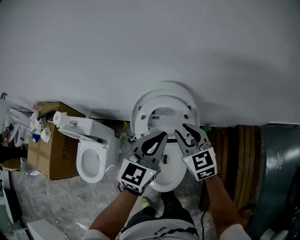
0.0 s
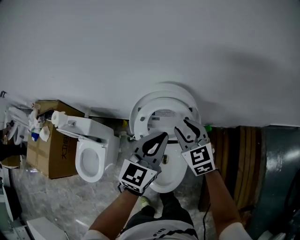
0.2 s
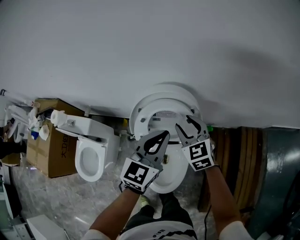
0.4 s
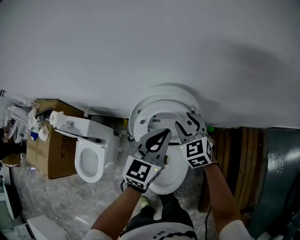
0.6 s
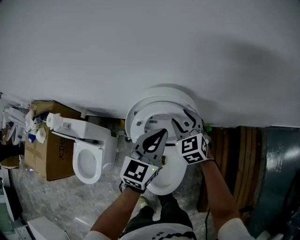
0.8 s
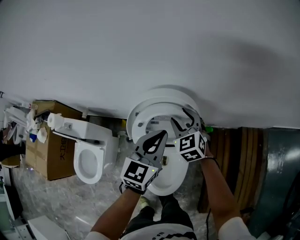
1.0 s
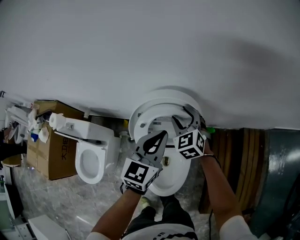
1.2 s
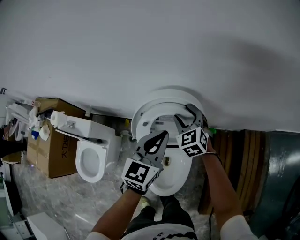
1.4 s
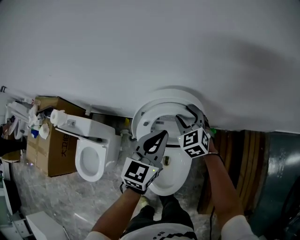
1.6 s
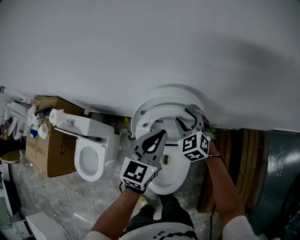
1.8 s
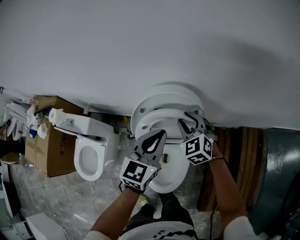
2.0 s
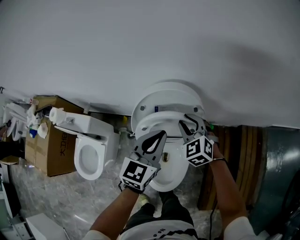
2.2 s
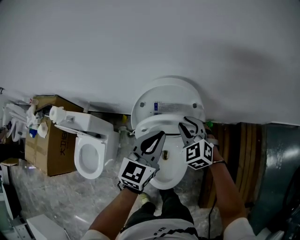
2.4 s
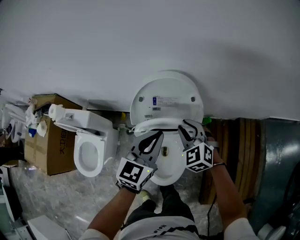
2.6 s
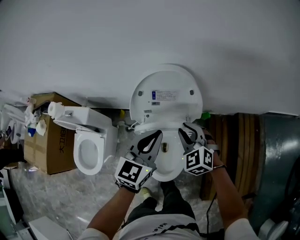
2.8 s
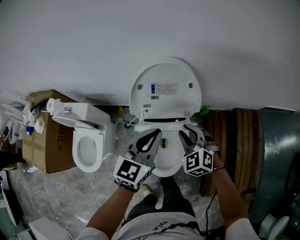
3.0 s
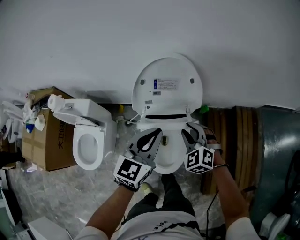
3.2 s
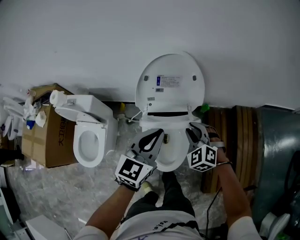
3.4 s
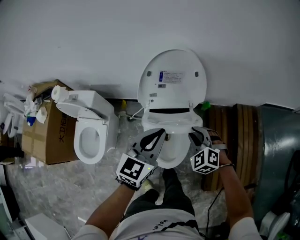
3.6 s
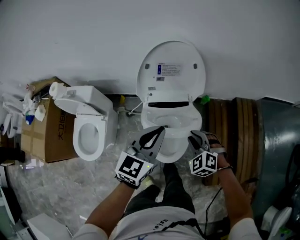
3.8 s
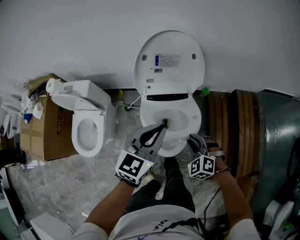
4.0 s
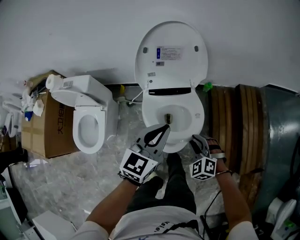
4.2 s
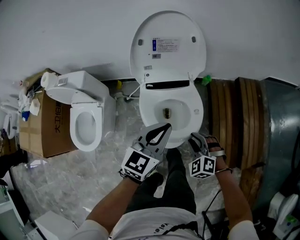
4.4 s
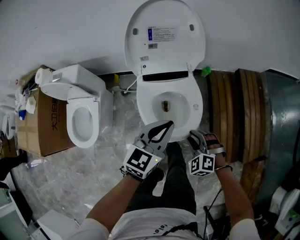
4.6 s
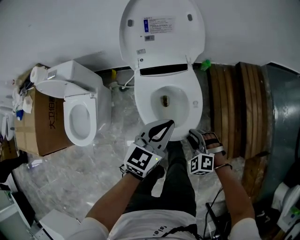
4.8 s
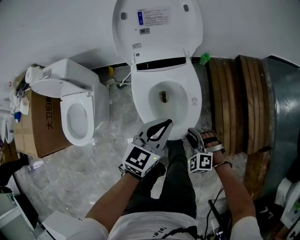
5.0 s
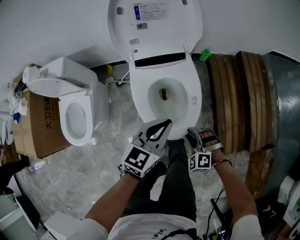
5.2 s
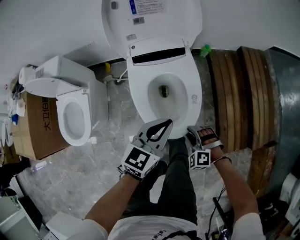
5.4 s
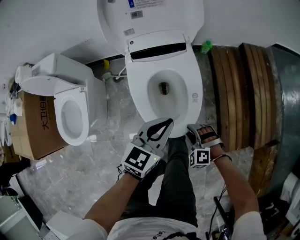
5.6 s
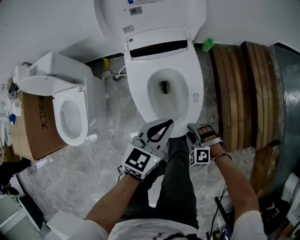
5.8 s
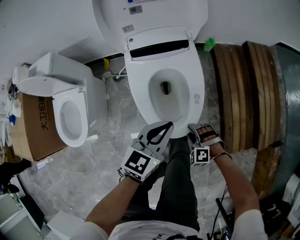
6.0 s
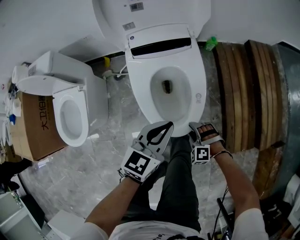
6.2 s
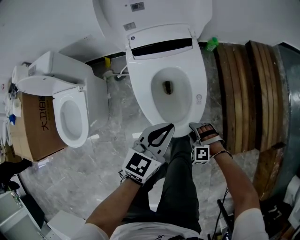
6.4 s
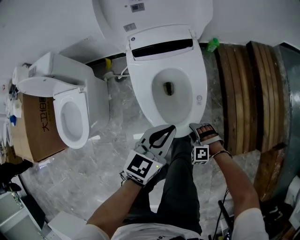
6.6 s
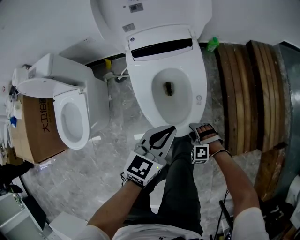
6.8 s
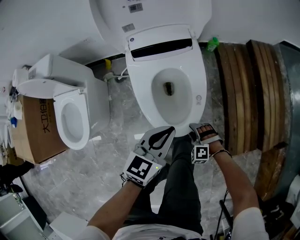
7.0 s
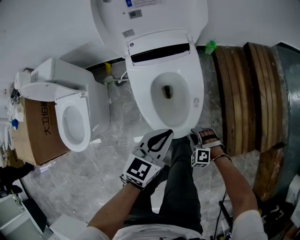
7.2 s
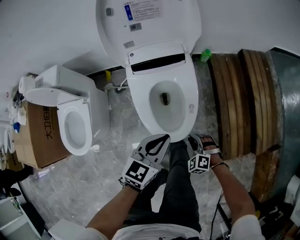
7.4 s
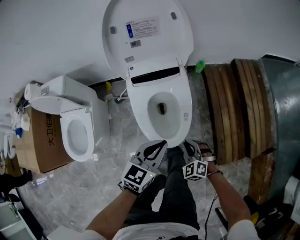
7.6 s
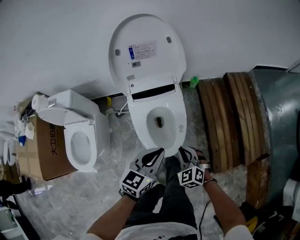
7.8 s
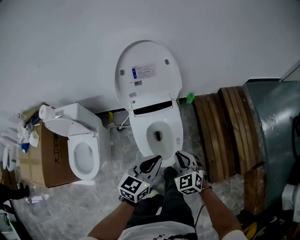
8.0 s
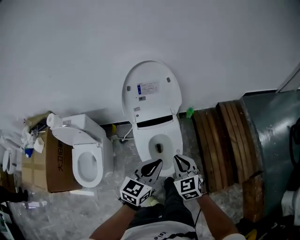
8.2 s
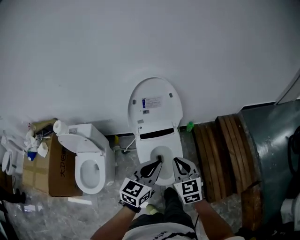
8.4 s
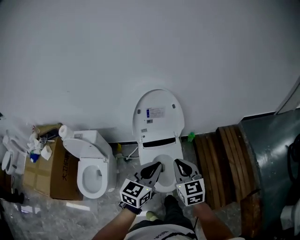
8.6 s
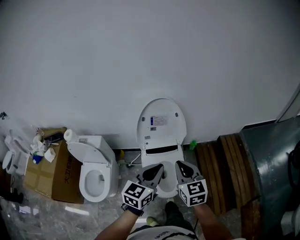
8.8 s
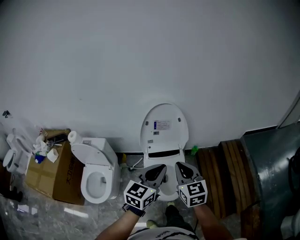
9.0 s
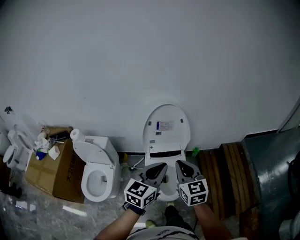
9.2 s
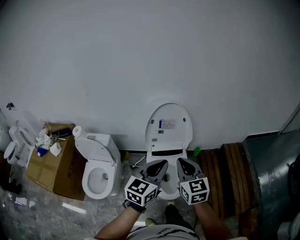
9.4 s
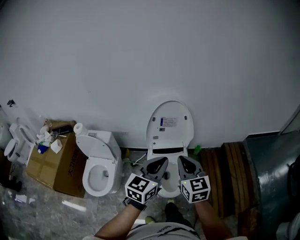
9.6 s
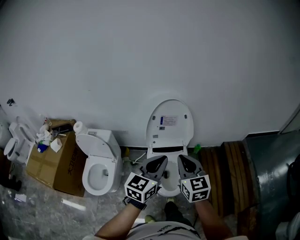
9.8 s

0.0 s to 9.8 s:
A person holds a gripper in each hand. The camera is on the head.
0.0 to 1.4 s: The right gripper goes approximately 20 cm forward and downward, and opens, while the left gripper goes approximately 10 cm forward and downward.
1.4 to 2.8 s: The right gripper travels backward by about 20 cm, and closes; the left gripper shifts approximately 10 cm backward.
2.8 to 4.2 s: The left gripper goes approximately 15 cm backward; the right gripper heads backward and downward, covering some 30 cm.
4.2 to 5.6 s: The right gripper travels downward and backward by some 30 cm. Meanwhile the left gripper heads downward, covering some 20 cm.
5.6 to 7.0 s: The right gripper moves downward, about 10 cm. Meanwhile the left gripper heads downward, covering roughly 5 cm.
7.0 to 8.4 s: The left gripper goes about 35 cm upward; the right gripper is displaced upward by roughly 60 cm, rotates around the line of its fingers by roughly 60 degrees, clockwise from behind, and closes.
8.4 to 9.8 s: The right gripper shifts approximately 15 cm upward. Meanwhile the left gripper heads upward and to the left, covering about 15 cm.

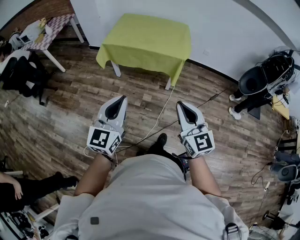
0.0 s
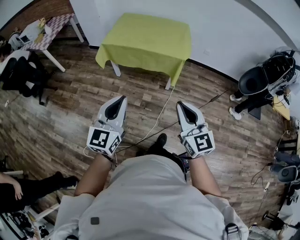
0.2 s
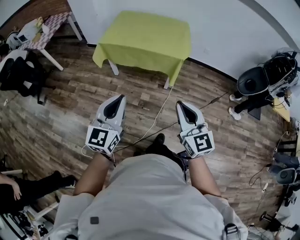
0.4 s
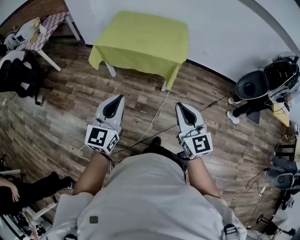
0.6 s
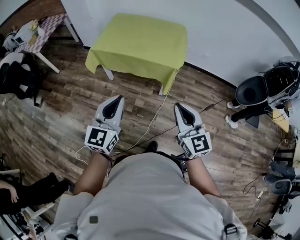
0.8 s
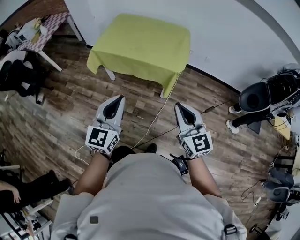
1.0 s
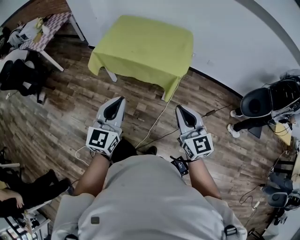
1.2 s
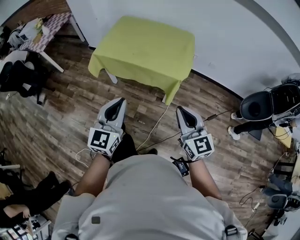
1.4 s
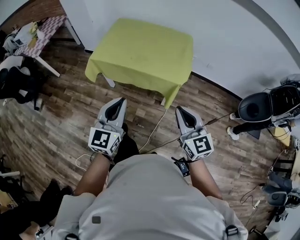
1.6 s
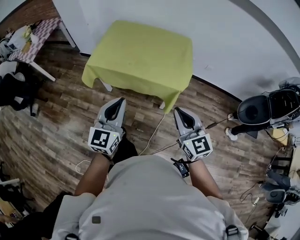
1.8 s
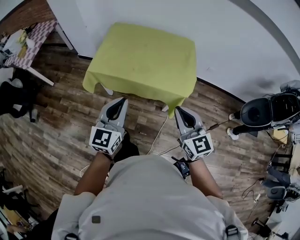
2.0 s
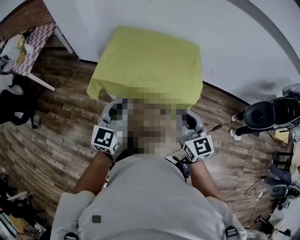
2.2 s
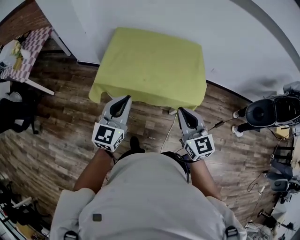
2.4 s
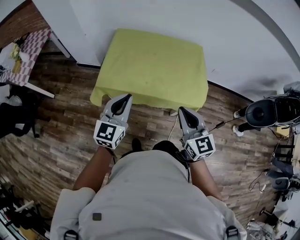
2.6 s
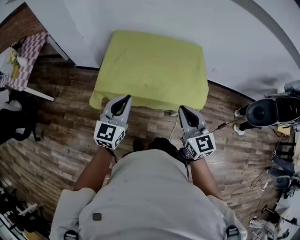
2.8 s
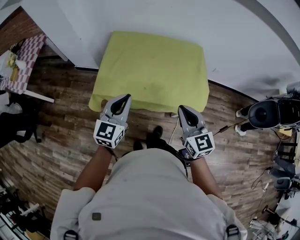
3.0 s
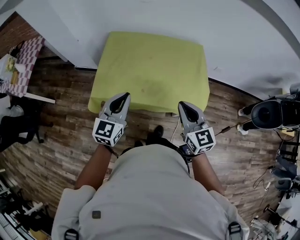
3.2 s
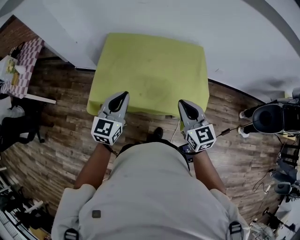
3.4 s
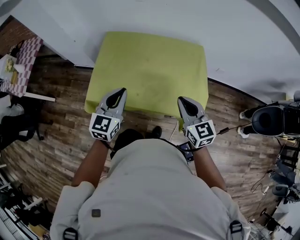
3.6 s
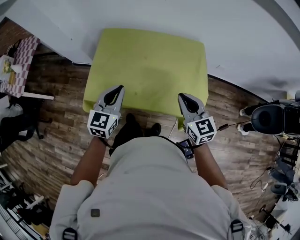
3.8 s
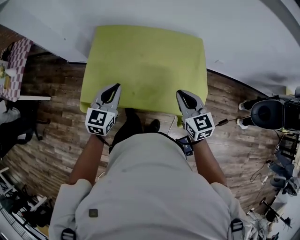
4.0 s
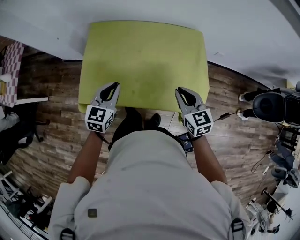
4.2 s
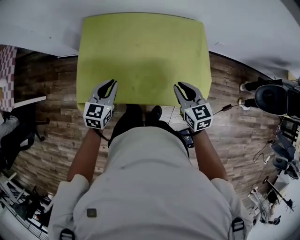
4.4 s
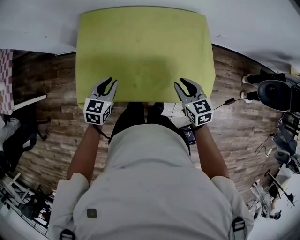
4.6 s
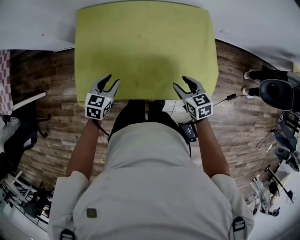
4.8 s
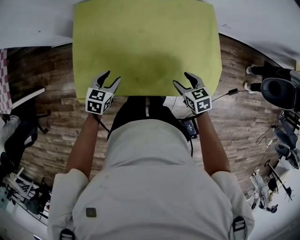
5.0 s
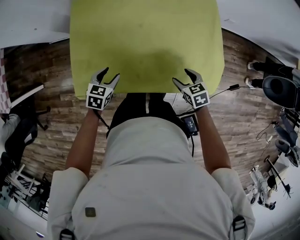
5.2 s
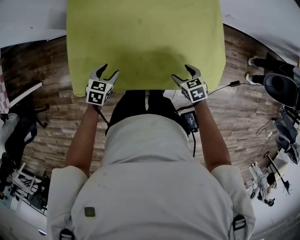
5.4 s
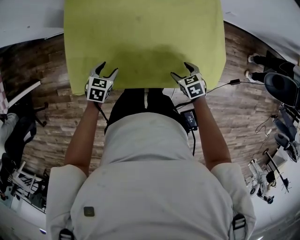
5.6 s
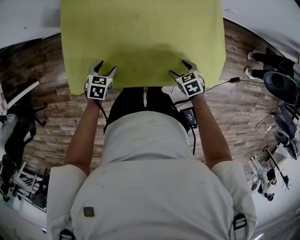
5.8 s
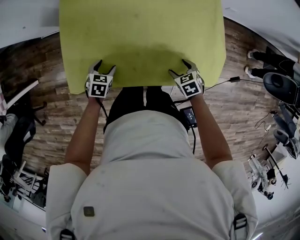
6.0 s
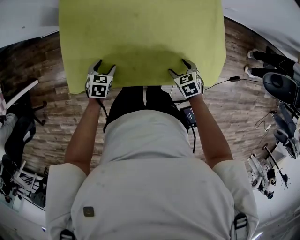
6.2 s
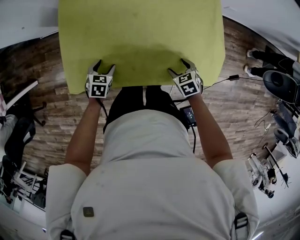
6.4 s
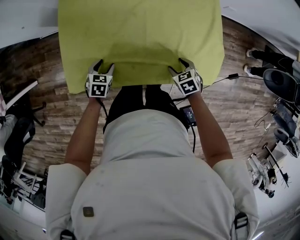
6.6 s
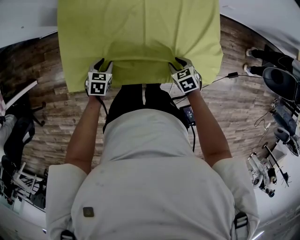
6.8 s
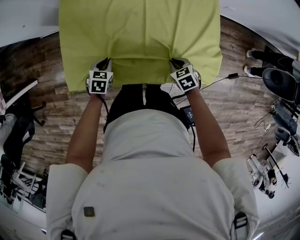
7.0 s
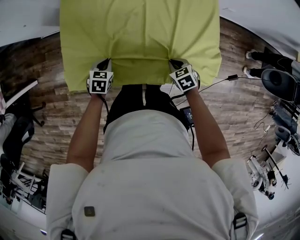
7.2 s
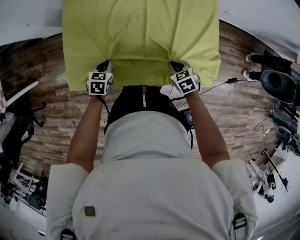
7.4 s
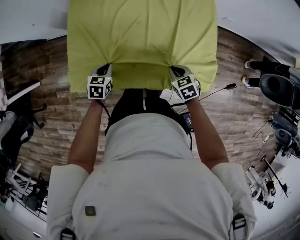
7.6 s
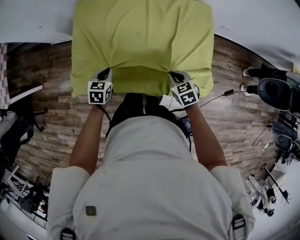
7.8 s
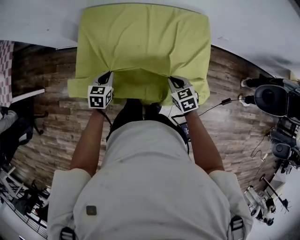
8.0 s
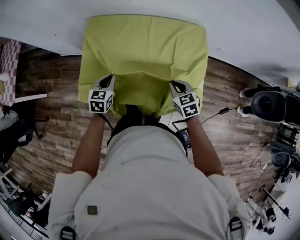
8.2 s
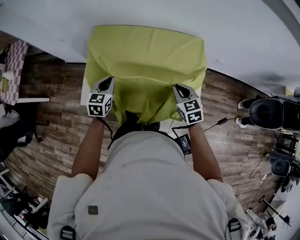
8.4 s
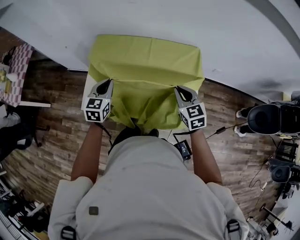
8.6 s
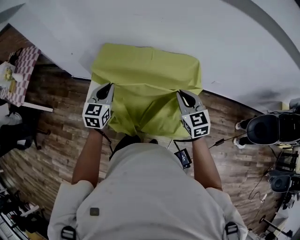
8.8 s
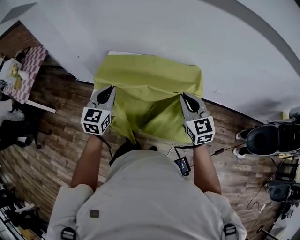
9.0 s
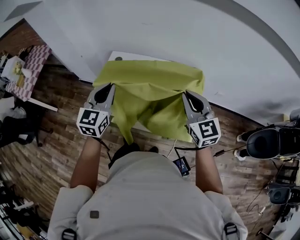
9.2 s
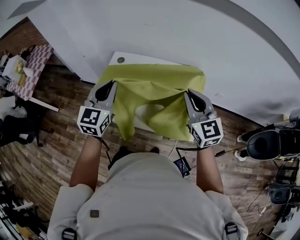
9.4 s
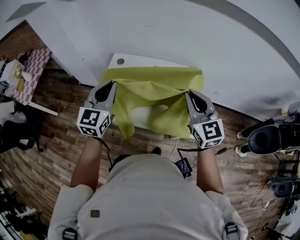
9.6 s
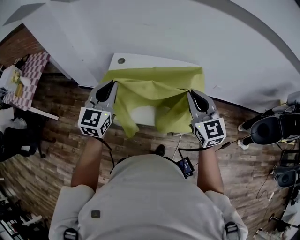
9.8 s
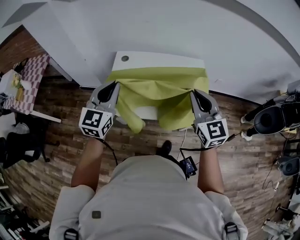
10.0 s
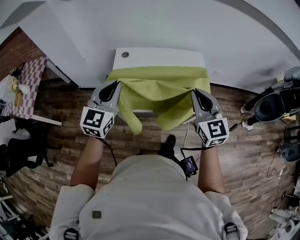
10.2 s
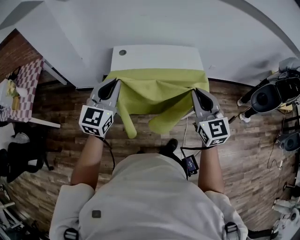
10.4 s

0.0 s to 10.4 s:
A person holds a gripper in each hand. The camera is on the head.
0.0 to 1.4 s: Both grippers move forward and to the right, about 25 cm.
1.4 to 3.0 s: Both grippers move forward and to the left, some 40 cm.
3.0 to 4.4 s: Both grippers travel together forward and downward, roughly 25 cm. The left gripper swivels about 20 degrees, while the right gripper rotates approximately 20 degrees.
4.4 to 6.0 s: The two grippers go roughly 25 cm downward. The left gripper tips its fingers downward by roughly 30 degrees, and opens, while the right gripper points its fingers roughly 40 degrees further downward, and opens up.
6.0 to 7.4 s: The right gripper closes, while the left gripper closes up.
7.4 to 9.0 s: The two grippers go about 40 cm upward. The left gripper tilts its fingers approximately 40 degrees upward. The right gripper tips its fingers upward by roughly 50 degrees.
9.0 to 10.4 s: The right gripper goes some 25 cm backward and to the left; the left gripper is displaced to the left, backward and upward by roughly 25 cm, and rotates approximately 20 degrees.

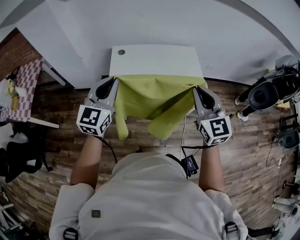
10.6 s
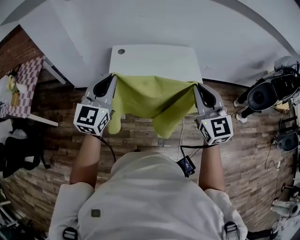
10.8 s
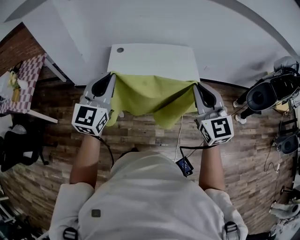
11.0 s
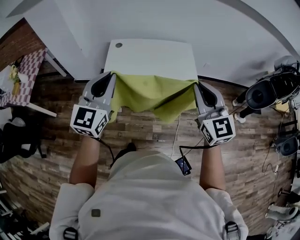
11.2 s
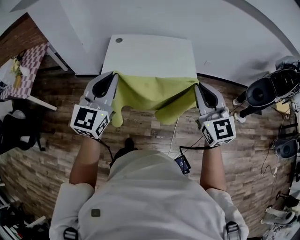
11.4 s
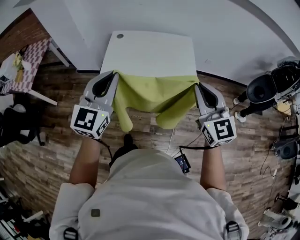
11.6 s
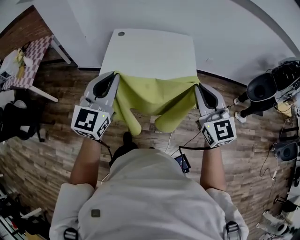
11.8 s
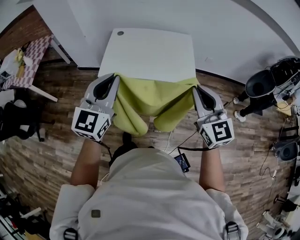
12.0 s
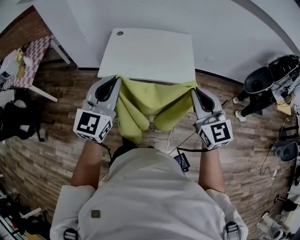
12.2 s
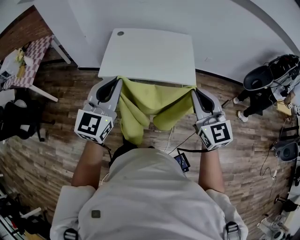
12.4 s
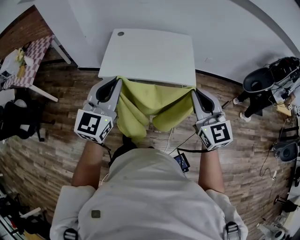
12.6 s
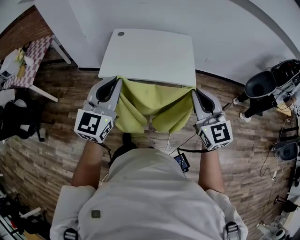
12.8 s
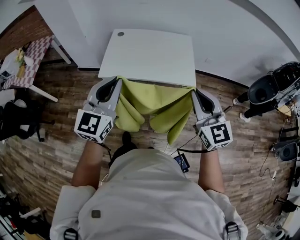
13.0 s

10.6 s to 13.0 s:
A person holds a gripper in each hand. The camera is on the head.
10.6 to 11.8 s: Both grippers move backward and to the right, some 25 cm.
11.8 to 13.0 s: The grippers move only a little.

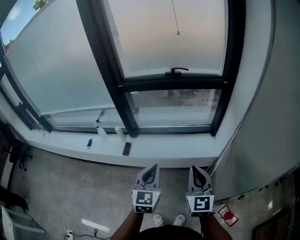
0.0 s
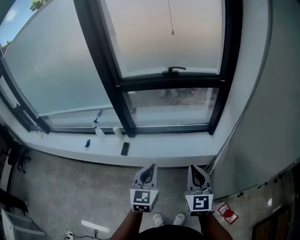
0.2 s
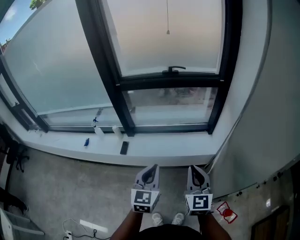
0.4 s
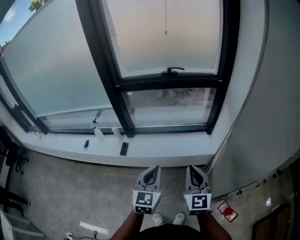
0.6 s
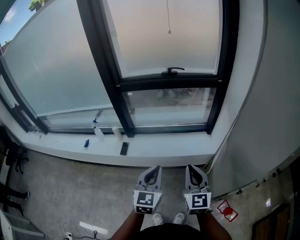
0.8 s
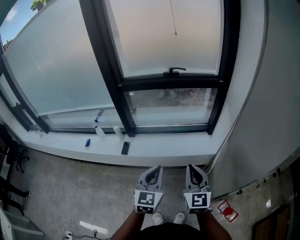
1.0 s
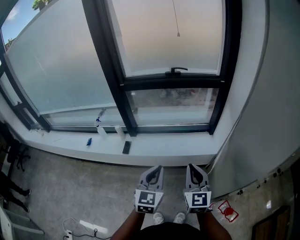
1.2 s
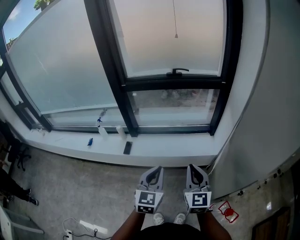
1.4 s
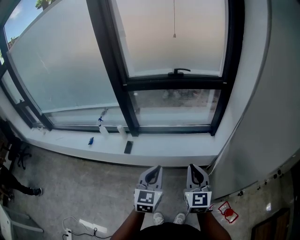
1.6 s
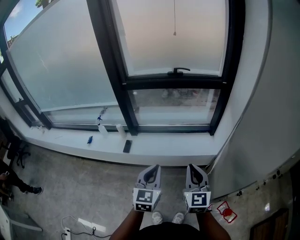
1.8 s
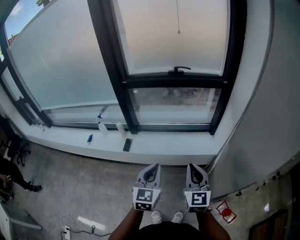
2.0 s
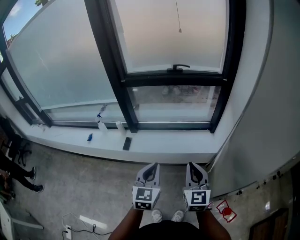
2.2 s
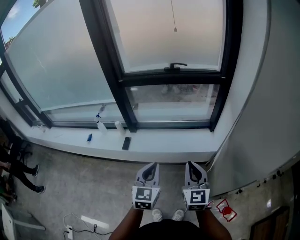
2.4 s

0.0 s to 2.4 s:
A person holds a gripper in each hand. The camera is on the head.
0.0 to 2.4 s: There are only small adjustments of the grippers.
